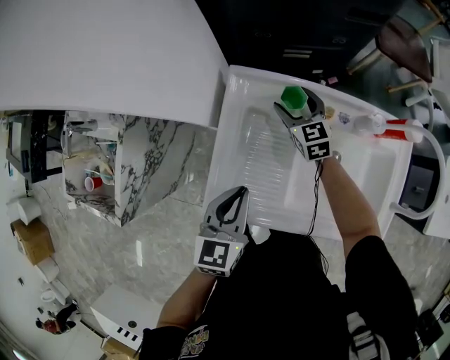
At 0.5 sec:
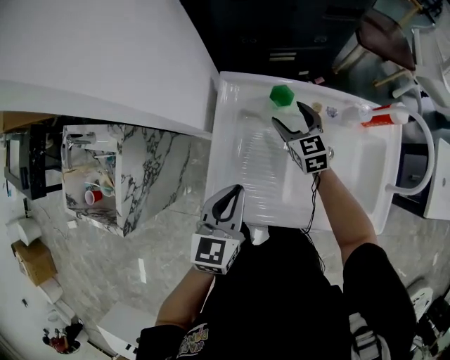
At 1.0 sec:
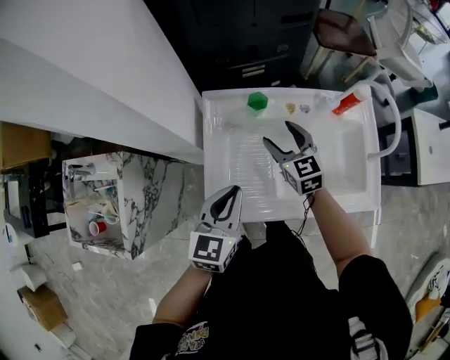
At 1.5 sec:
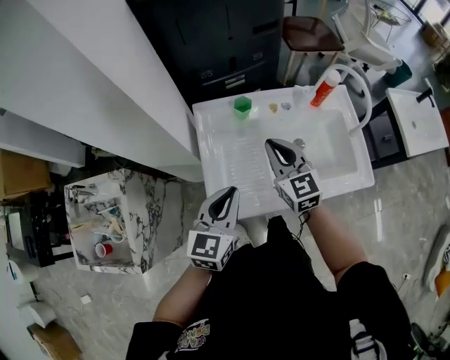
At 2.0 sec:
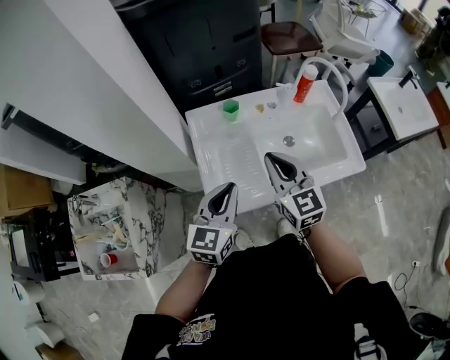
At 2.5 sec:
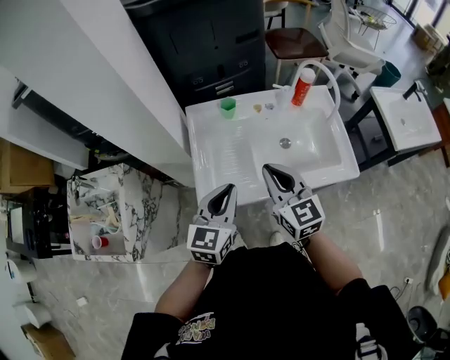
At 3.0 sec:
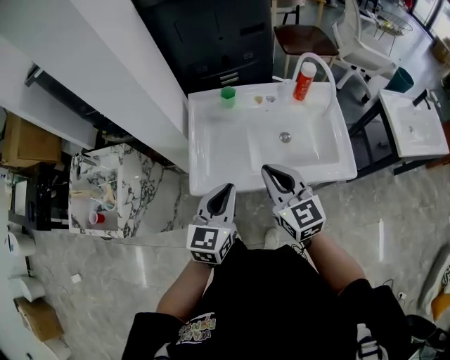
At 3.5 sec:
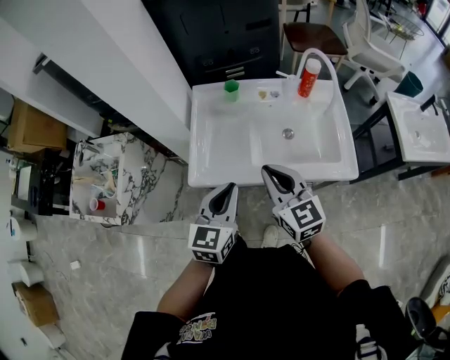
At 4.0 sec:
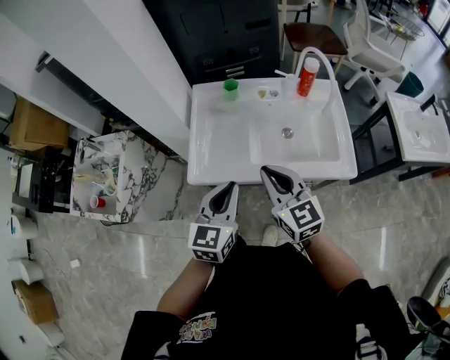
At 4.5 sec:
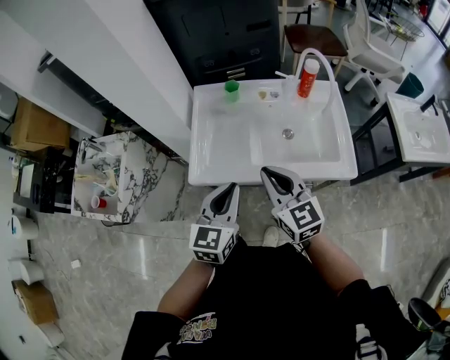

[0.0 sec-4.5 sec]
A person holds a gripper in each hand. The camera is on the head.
0.0 sec to 2.0 sec: The left gripper travels upward and backward by approximately 10 cm, and rotates roughly 30 degrees. The right gripper shifts roughly 35 cm backward and upward, changes its angle by about 30 degrees, and closes its fingers.
2.0 sec to 4.5 sec: The two grippers go some 15 cm backward and to the right.

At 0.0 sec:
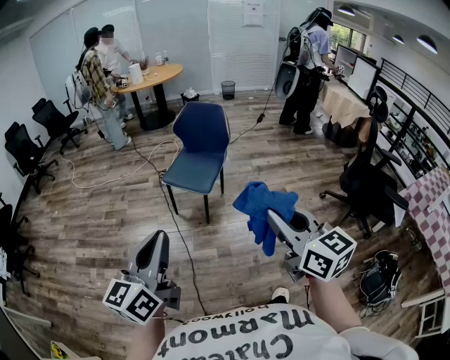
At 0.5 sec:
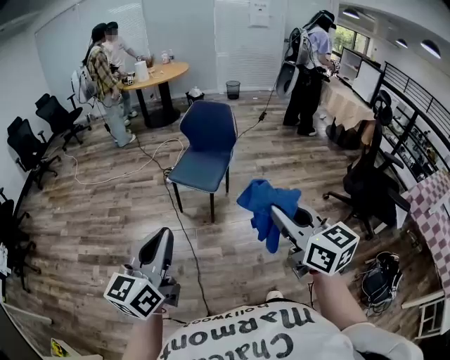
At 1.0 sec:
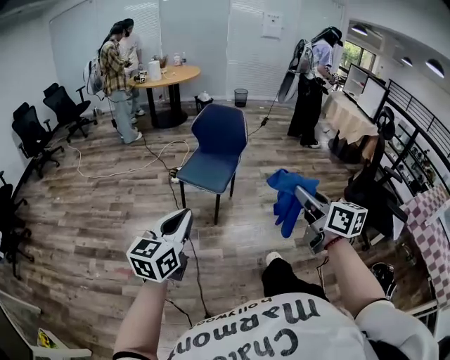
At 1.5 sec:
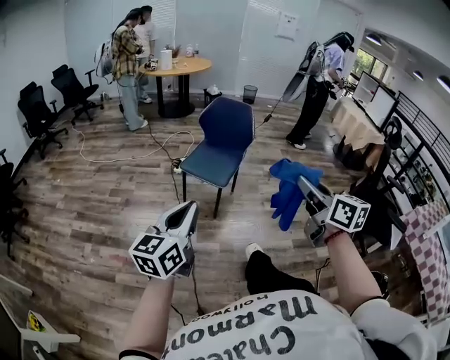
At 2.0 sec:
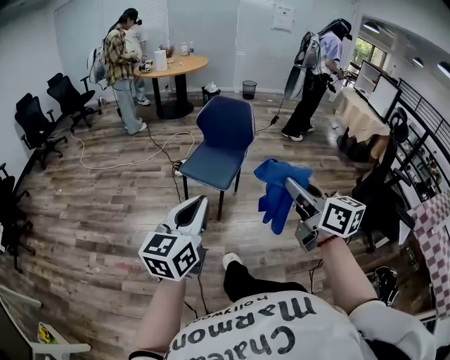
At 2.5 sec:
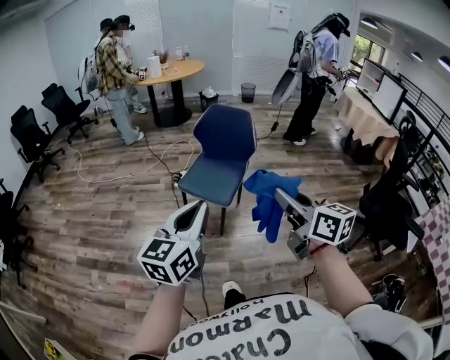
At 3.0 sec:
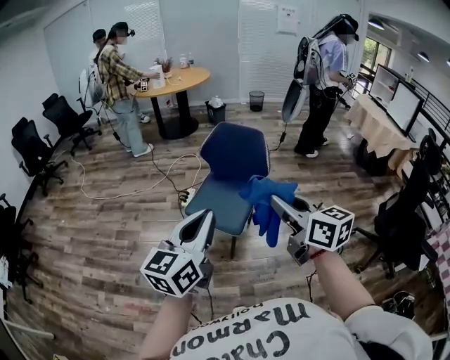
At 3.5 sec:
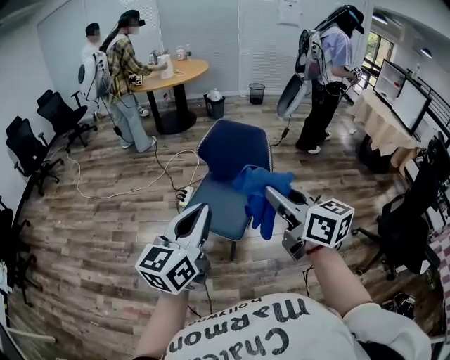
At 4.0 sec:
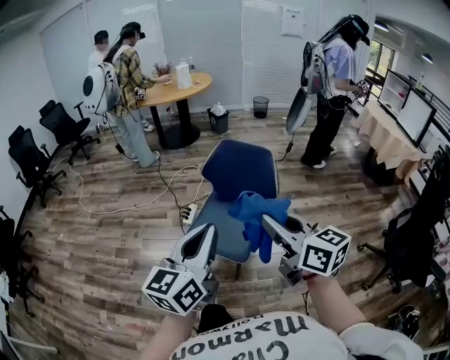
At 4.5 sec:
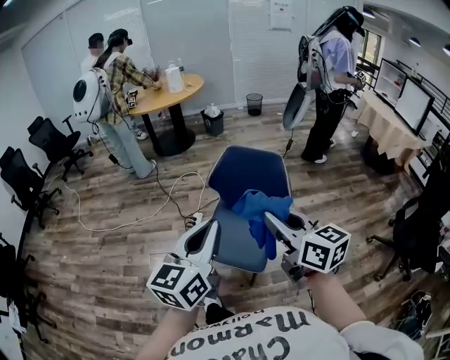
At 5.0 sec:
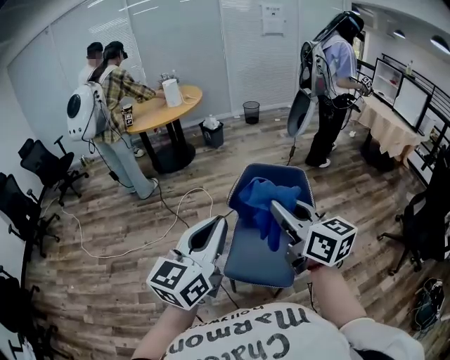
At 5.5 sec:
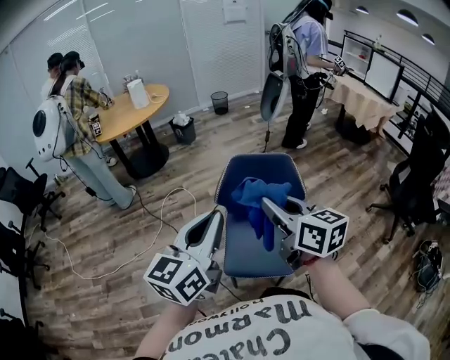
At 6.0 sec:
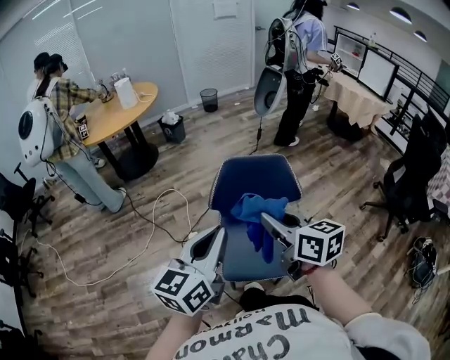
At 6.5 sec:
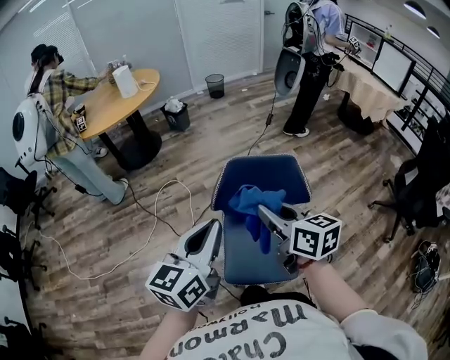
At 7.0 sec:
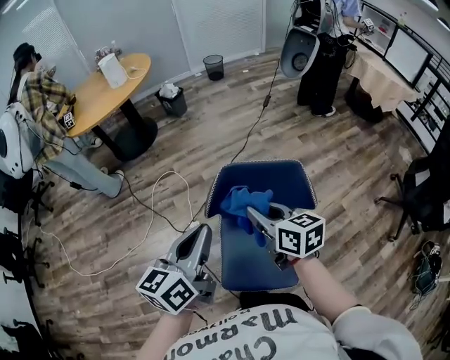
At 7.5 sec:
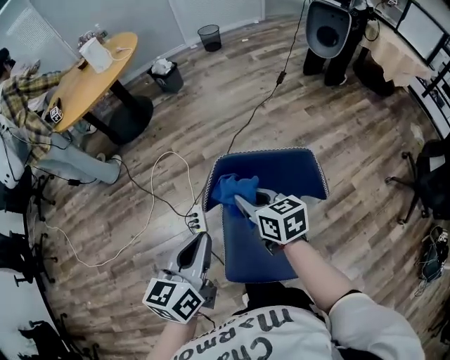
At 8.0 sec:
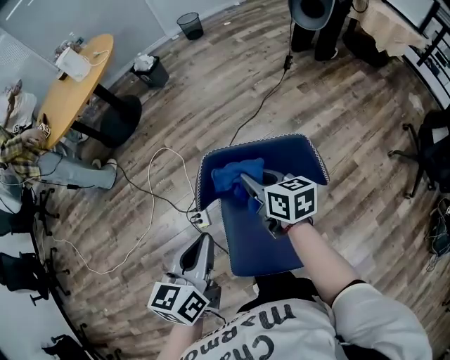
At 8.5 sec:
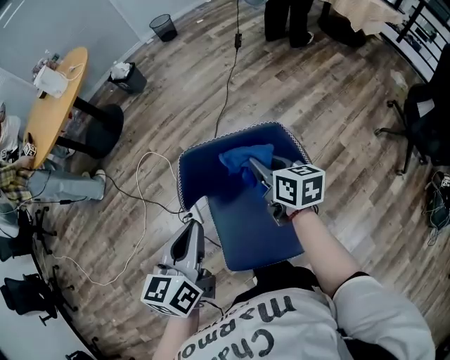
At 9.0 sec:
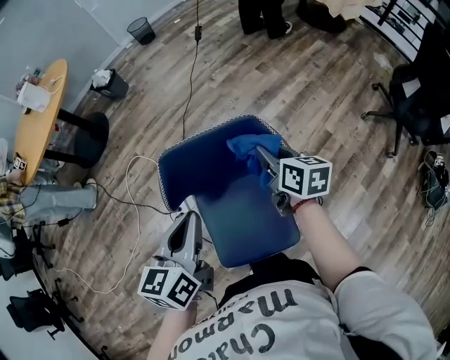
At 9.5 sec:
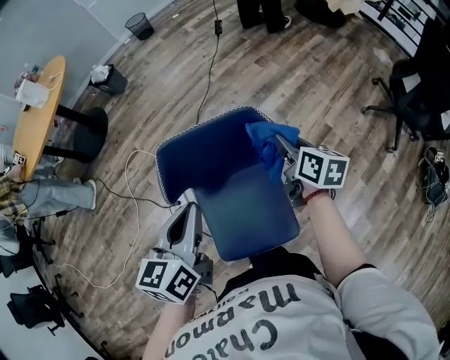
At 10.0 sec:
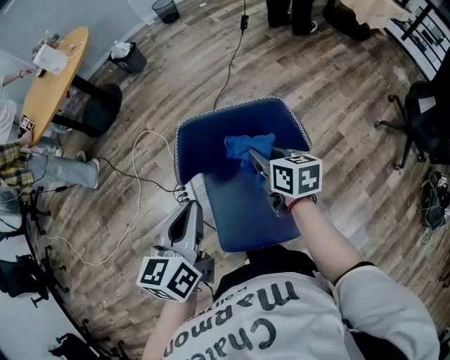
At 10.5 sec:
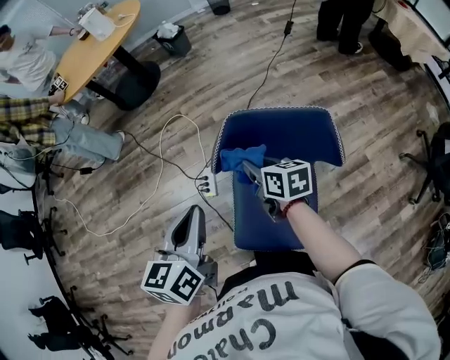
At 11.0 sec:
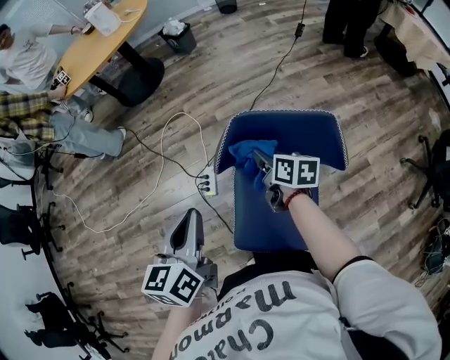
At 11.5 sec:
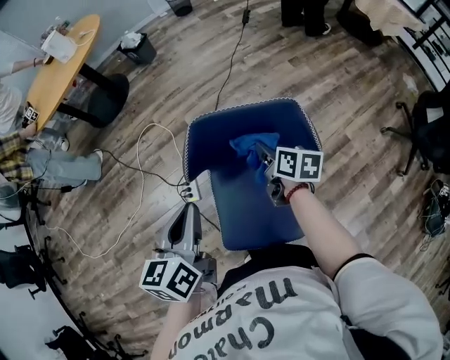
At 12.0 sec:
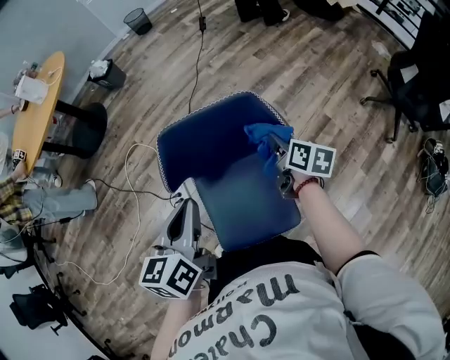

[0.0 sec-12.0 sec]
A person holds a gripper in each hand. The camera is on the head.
0.0 sec to 2.0 sec: The grippers both shift forward by some 10 cm.
2.0 sec to 4.0 sec: The two grippers go about 35 cm forward.
4.0 sec to 6.0 sec: The left gripper moves some 35 cm, and rotates about 30 degrees, while the right gripper moves some 30 cm, and swivels about 30 degrees.
6.0 sec to 8.0 sec: Both grippers travel together forward and downward, some 30 cm. The left gripper changes its angle by about 30 degrees.
8.0 sec to 10.0 sec: The right gripper shifts some 10 cm to the right.
10.0 sec to 12.0 sec: The right gripper changes place by some 10 cm, and changes its angle by about 30 degrees.

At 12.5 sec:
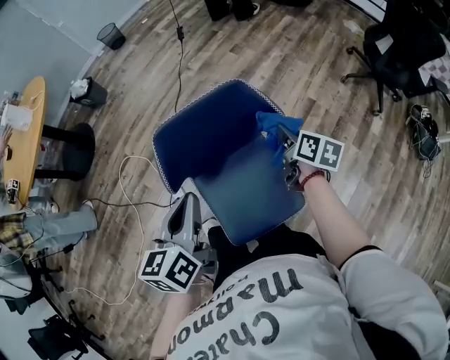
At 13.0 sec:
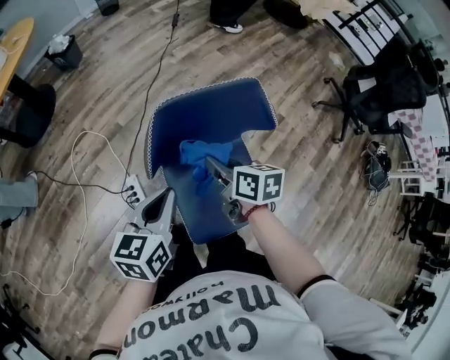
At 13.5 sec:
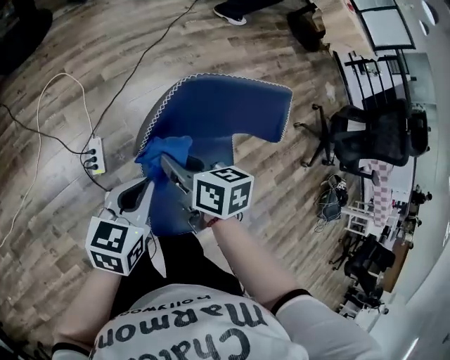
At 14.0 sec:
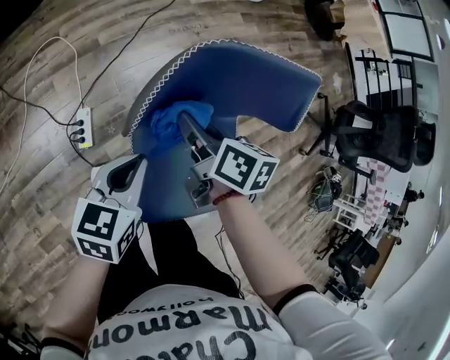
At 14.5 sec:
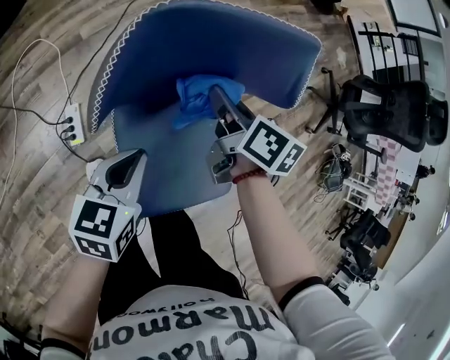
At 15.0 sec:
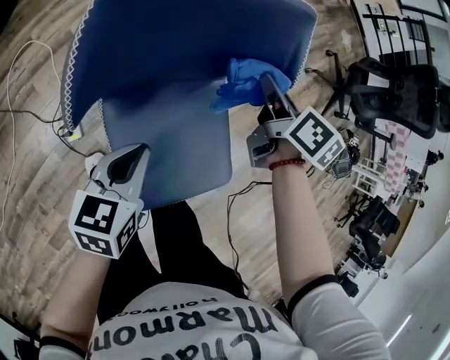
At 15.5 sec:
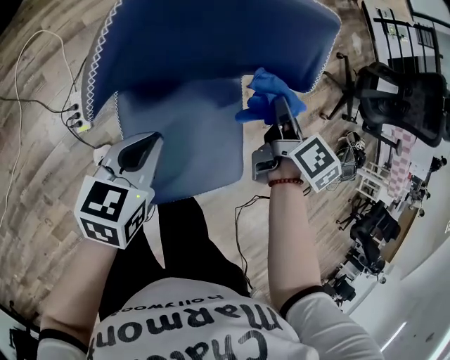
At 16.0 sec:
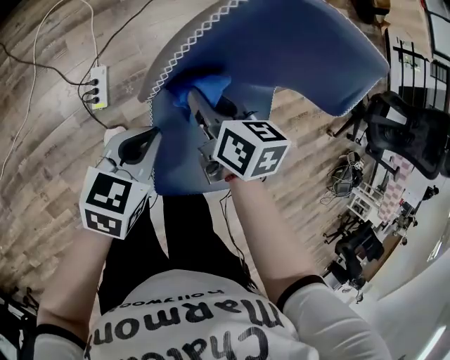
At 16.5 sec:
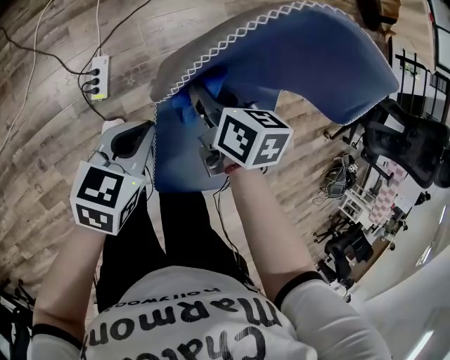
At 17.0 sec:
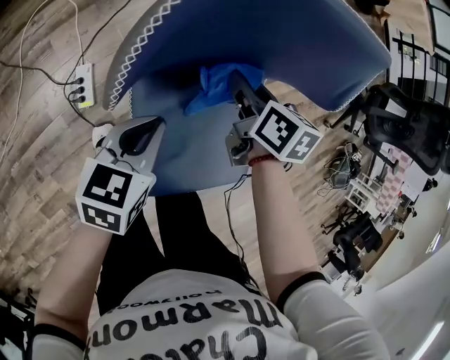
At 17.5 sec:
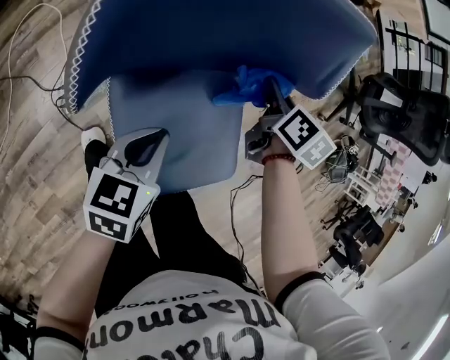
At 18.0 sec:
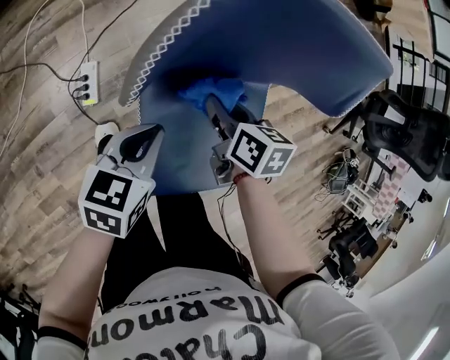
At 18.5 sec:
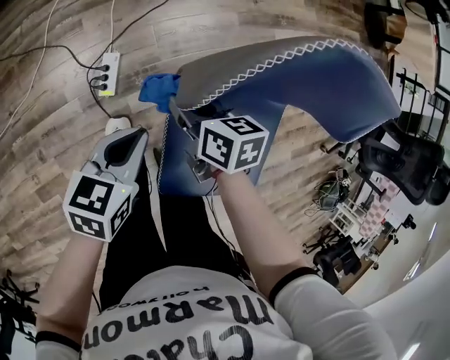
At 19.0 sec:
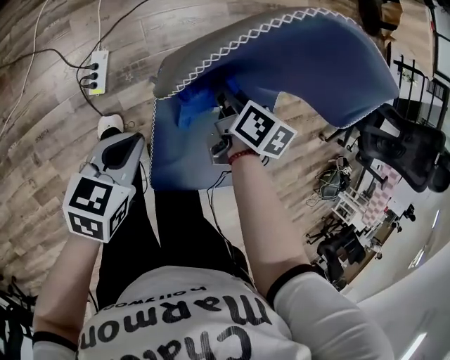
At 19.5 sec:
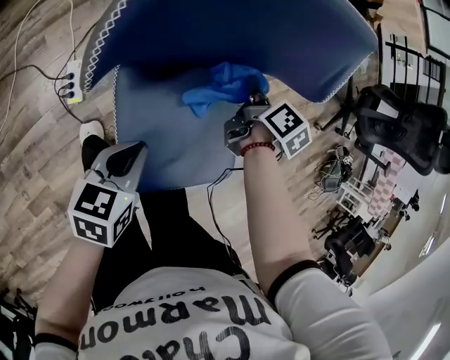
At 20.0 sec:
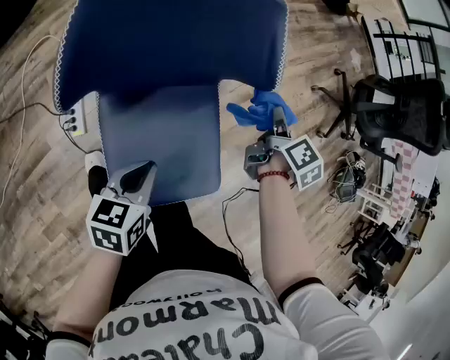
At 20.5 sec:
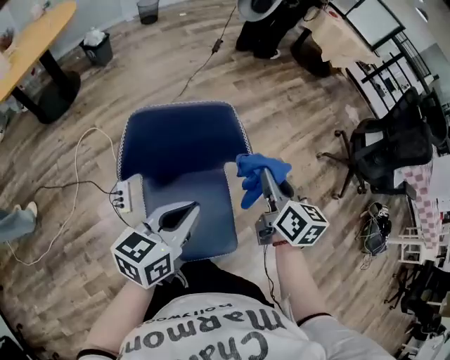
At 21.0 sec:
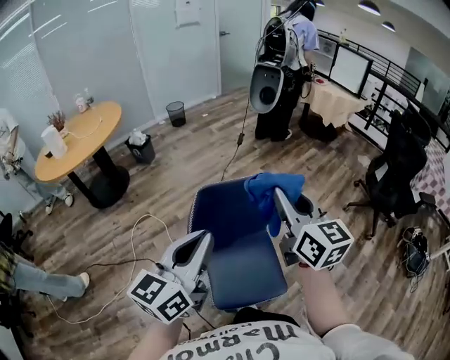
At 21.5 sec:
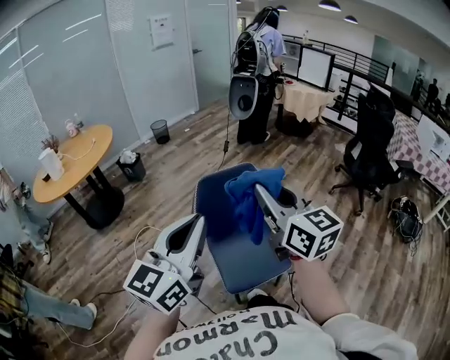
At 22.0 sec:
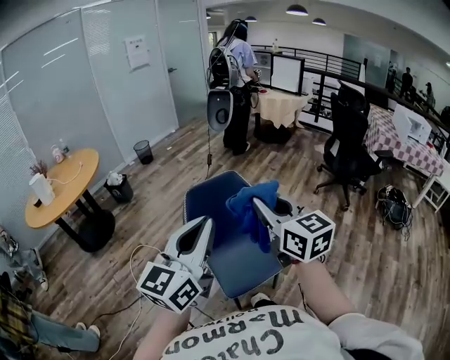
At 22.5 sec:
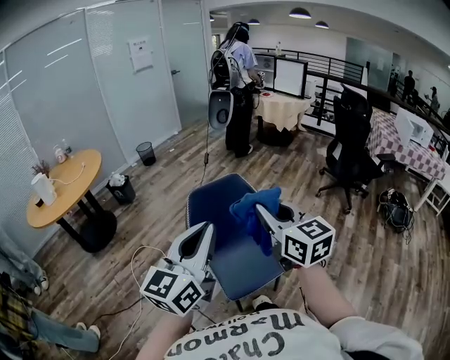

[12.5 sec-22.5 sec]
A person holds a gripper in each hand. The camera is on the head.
12.5 sec to 14.5 sec: The right gripper travels to the left and downward by some 20 cm. The left gripper goes approximately 25 cm downward.
14.5 sec to 16.5 sec: The right gripper changes place by about 20 cm, and swivels roughly 30 degrees. The left gripper moves some 10 cm.
18.5 sec to 20.5 sec: The right gripper ends up about 50 cm from where it was, and turns by roughly 50 degrees; the left gripper ends up about 40 cm from where it was, and turns by approximately 20 degrees.
20.5 sec to 22.5 sec: The right gripper travels backward, upward and to the left by roughly 40 cm, and changes its angle by approximately 30 degrees; the left gripper shifts approximately 40 cm upward and backward, and rotates roughly 40 degrees.
